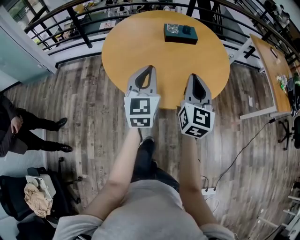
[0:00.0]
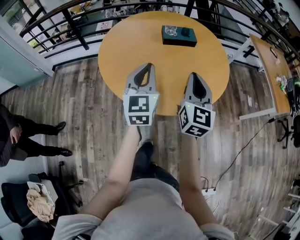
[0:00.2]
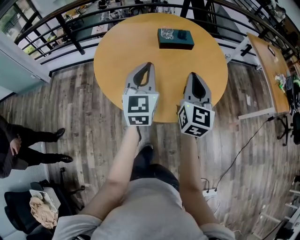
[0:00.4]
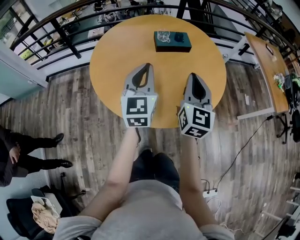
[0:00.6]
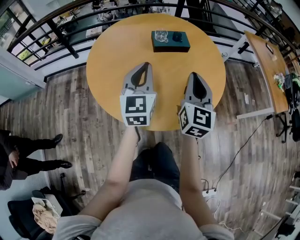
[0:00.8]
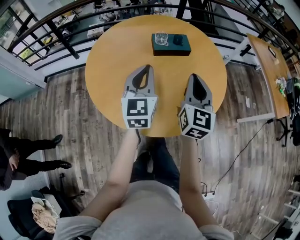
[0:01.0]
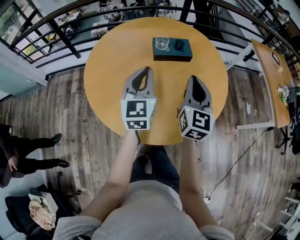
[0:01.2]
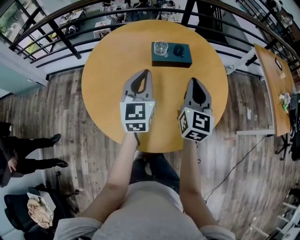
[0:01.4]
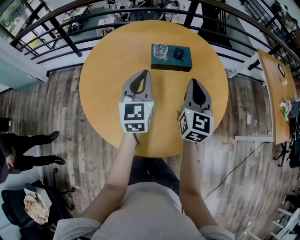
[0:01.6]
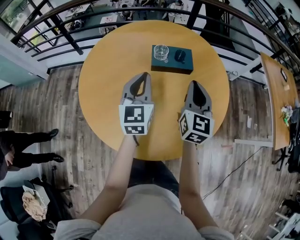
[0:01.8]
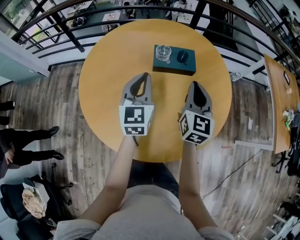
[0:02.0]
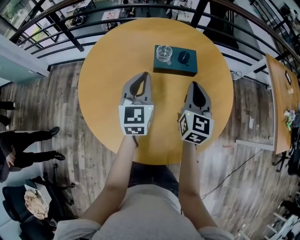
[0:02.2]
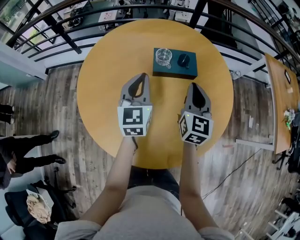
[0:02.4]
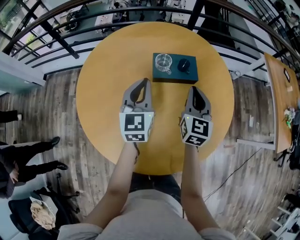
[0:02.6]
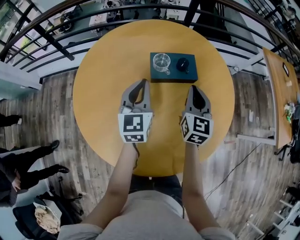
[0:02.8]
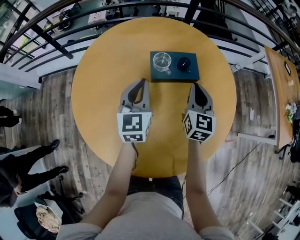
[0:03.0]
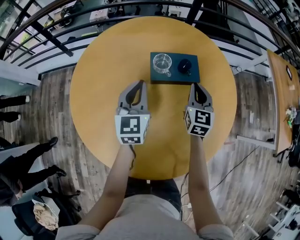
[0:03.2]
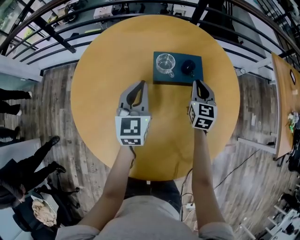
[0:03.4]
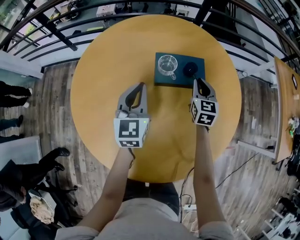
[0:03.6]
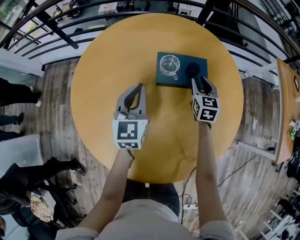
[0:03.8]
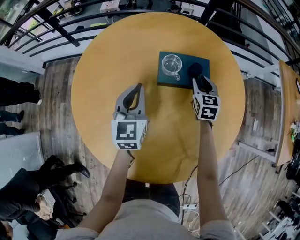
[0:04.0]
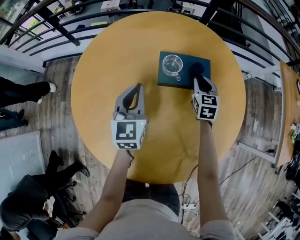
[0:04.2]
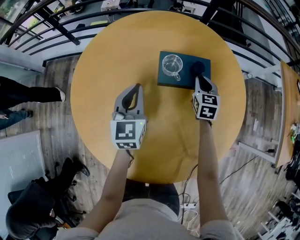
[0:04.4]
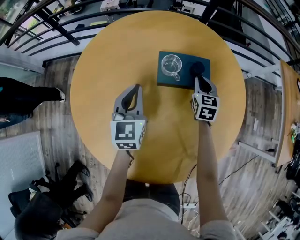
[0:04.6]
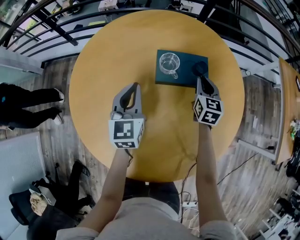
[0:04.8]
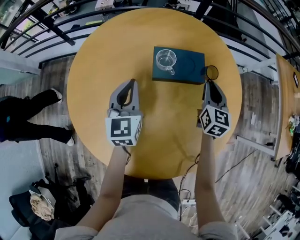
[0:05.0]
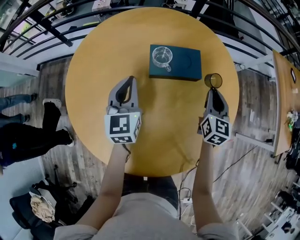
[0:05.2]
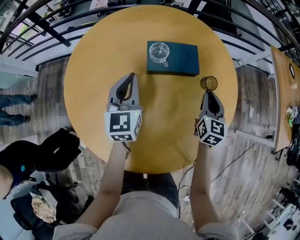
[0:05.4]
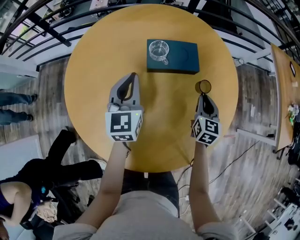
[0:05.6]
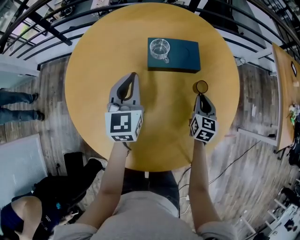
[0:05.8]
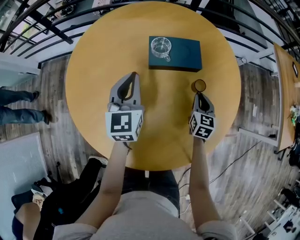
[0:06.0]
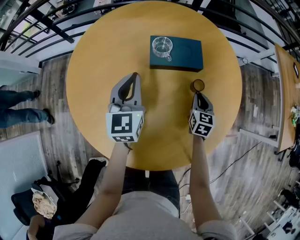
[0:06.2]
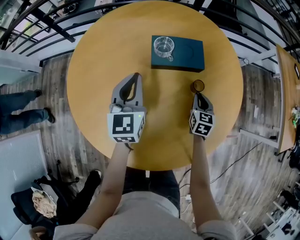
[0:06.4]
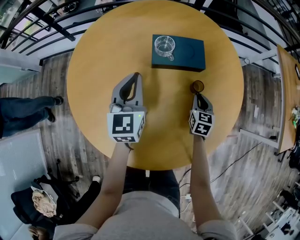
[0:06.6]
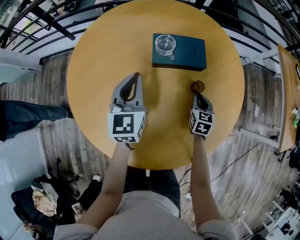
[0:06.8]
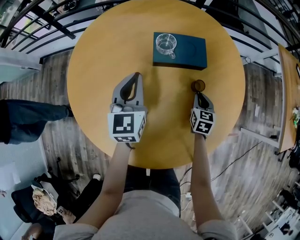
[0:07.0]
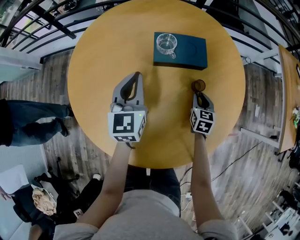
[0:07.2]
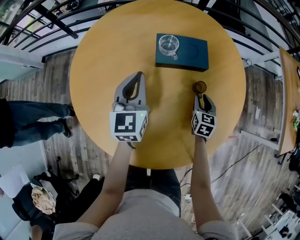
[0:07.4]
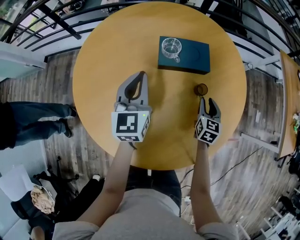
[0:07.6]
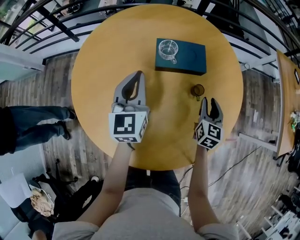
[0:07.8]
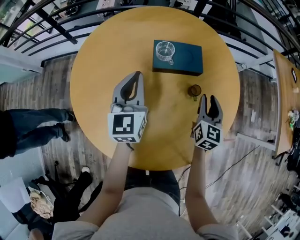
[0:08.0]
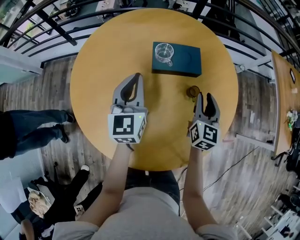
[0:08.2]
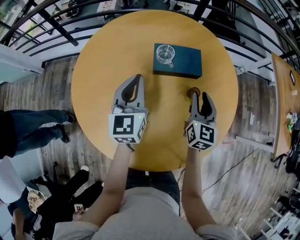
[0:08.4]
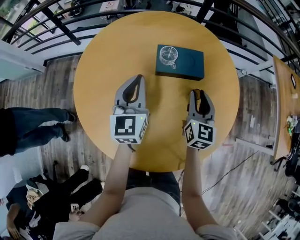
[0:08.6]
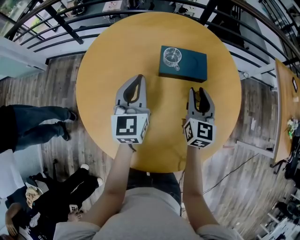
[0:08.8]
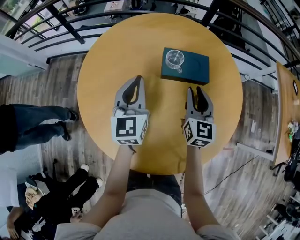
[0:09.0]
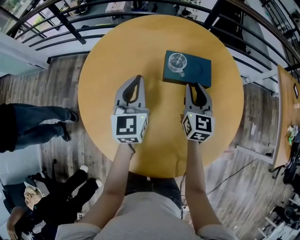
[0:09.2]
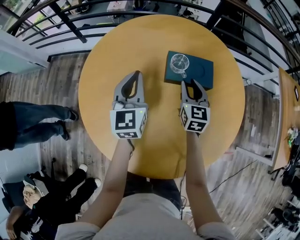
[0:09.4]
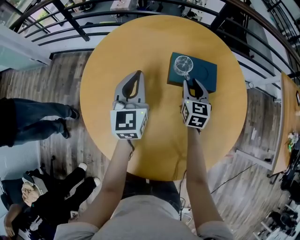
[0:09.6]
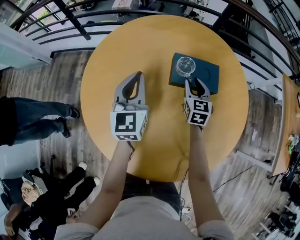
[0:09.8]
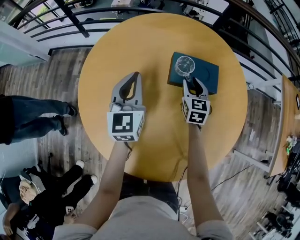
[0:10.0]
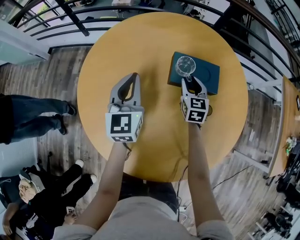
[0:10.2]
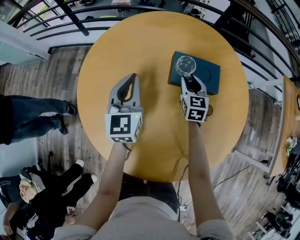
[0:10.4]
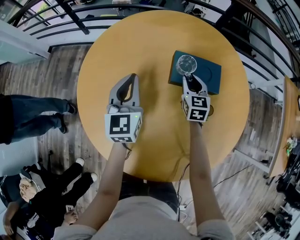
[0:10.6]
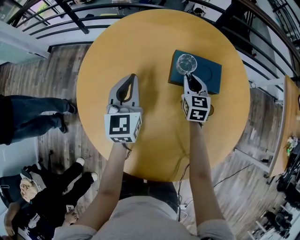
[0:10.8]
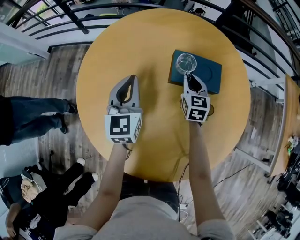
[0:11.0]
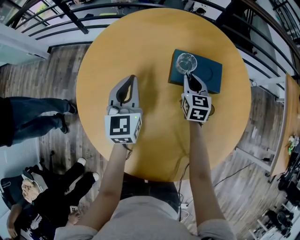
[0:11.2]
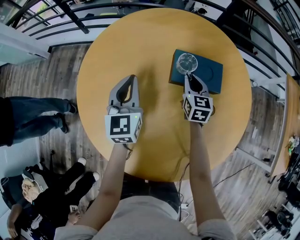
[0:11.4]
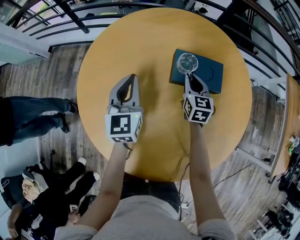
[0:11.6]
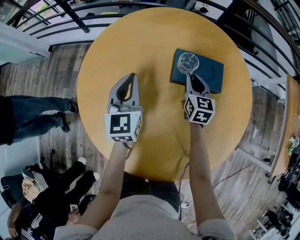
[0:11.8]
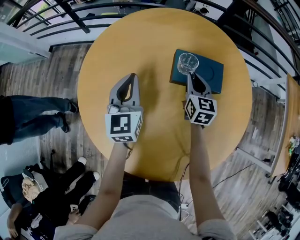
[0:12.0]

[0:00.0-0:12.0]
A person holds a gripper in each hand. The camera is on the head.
0:00.0 to 0:01.6: Both grippers move forward, roughly 30 cm.
0:01.6 to 0:03.0: Both grippers travel together forward and downward, approximately 15 cm.
0:03.0 to 0:04.4: The right gripper moves forward and downward, about 15 cm, turns by about 20 degrees, and opens, then closes once more, while the left gripper moves about 5 cm.
0:04.4 to 0:06.0: The right gripper moves backward and to the right, approximately 15 cm; the left gripper changes place by approximately 5 cm.
0:06.0 to 0:07.6: The grippers make only small movements.
0:07.6 to 0:09.0: The right gripper moves upward and to the left, approximately 20 cm, and turns by roughly 20 degrees.
0:09.0 to 0:10.4: The right gripper goes roughly 15 cm forward and downward. The left gripper moves about 5 cm.
0:10.4 to 0:12.0: There are only small adjustments of the grippers.

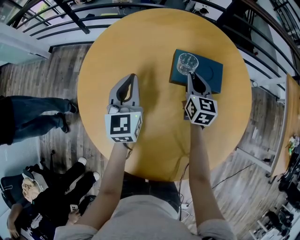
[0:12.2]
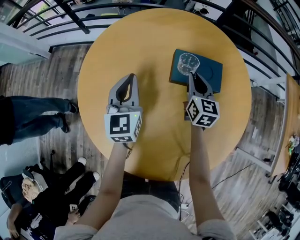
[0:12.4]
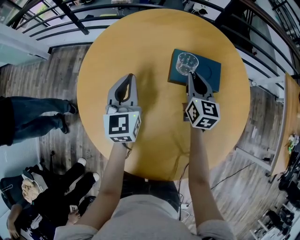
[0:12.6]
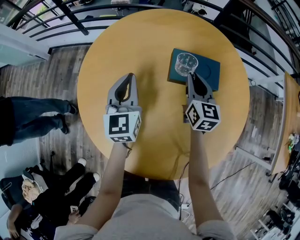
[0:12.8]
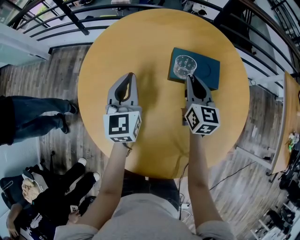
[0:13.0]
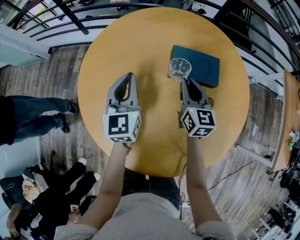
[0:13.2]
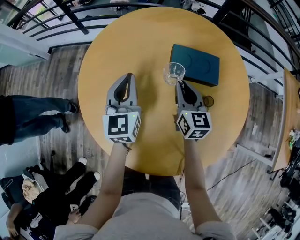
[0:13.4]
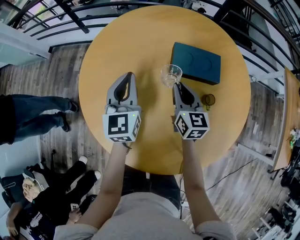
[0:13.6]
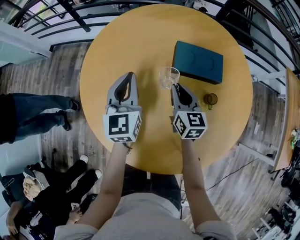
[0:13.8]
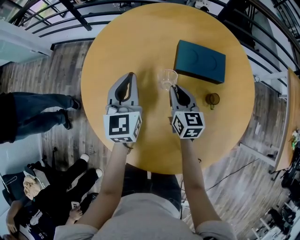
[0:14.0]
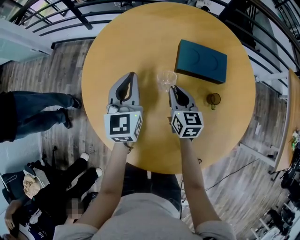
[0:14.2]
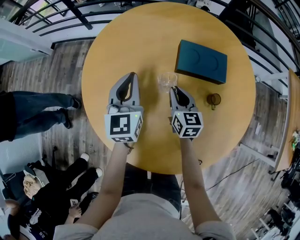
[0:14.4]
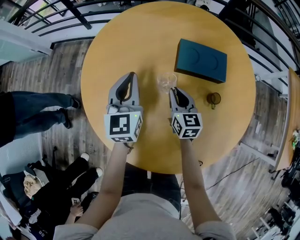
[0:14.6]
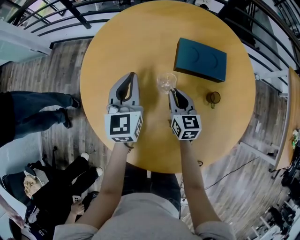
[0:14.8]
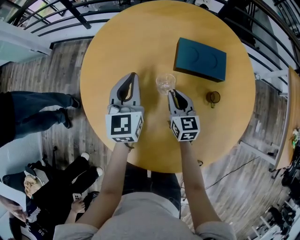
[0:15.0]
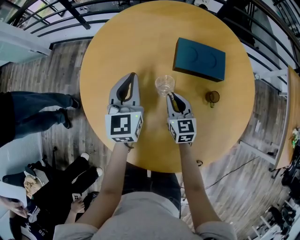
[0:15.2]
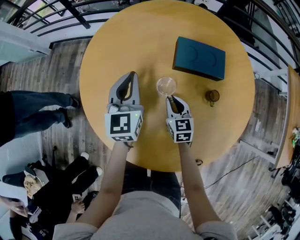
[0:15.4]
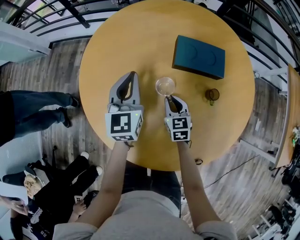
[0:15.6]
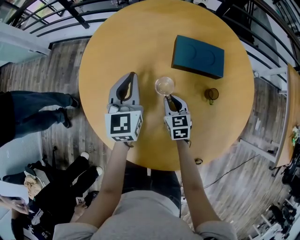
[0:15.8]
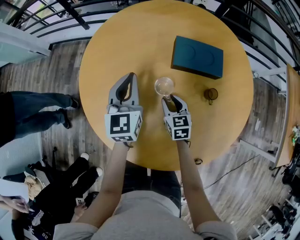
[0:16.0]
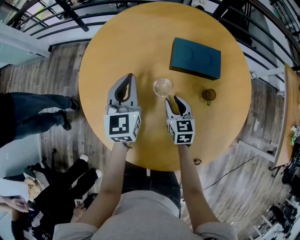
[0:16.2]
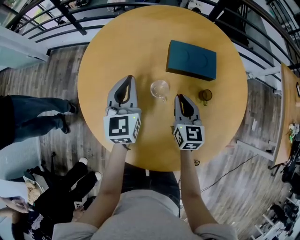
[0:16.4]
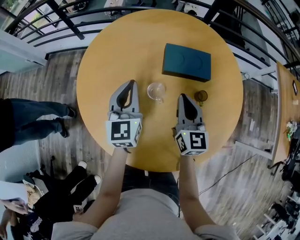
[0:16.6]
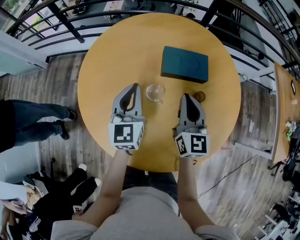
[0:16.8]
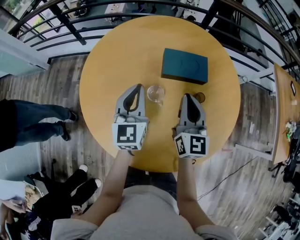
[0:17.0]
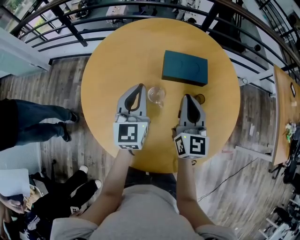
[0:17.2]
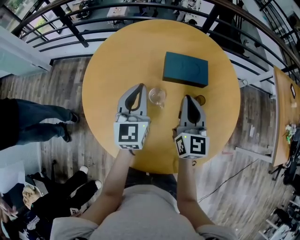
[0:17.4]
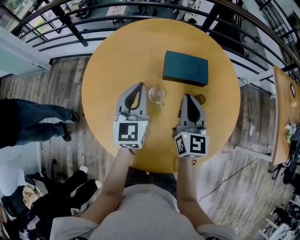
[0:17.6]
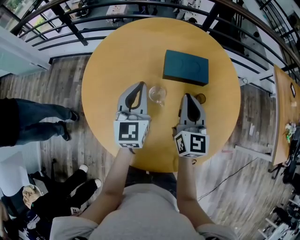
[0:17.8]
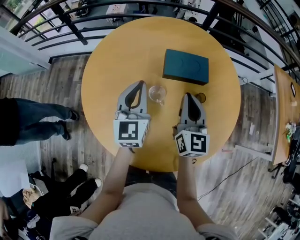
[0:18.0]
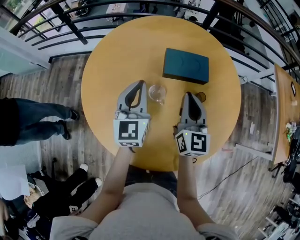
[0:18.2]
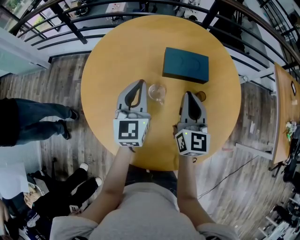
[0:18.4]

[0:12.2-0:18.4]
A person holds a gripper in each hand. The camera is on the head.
0:12.2 to 0:13.8: The right gripper goes some 10 cm backward and to the left.
0:13.8 to 0:15.4: The right gripper is displaced downward and backward by some 10 cm.
0:15.4 to 0:16.8: The left gripper changes place by about 5 cm. Meanwhile the right gripper travels upward by approximately 20 cm, and swivels some 30 degrees.
0:16.8 to 0:18.4: There are only small adjustments of the grippers.

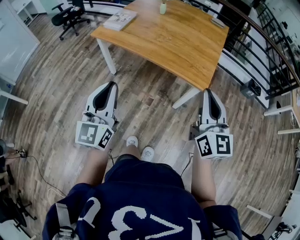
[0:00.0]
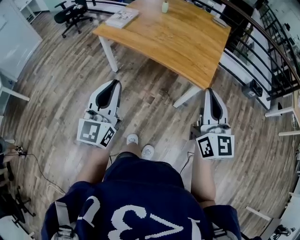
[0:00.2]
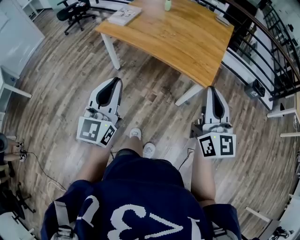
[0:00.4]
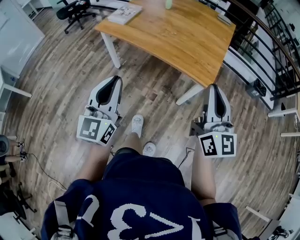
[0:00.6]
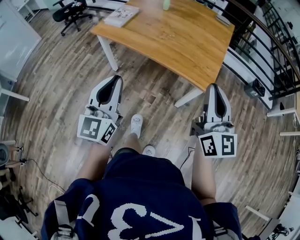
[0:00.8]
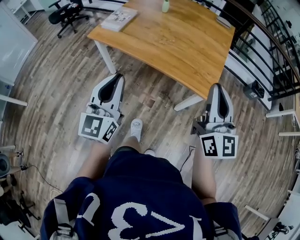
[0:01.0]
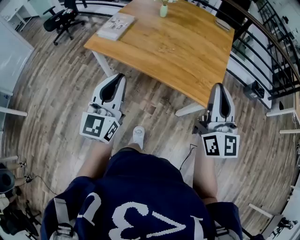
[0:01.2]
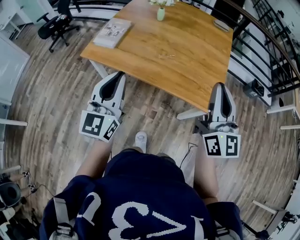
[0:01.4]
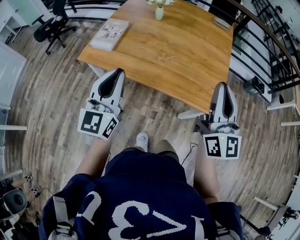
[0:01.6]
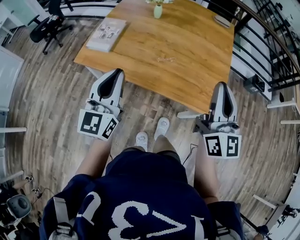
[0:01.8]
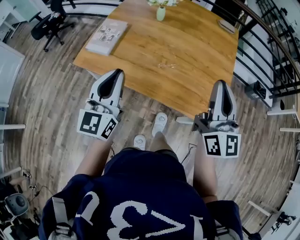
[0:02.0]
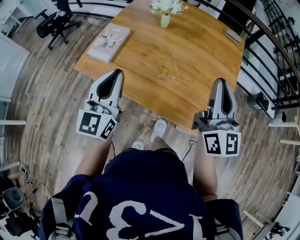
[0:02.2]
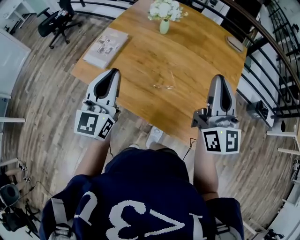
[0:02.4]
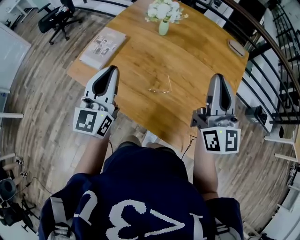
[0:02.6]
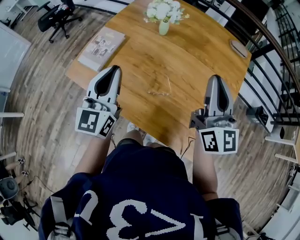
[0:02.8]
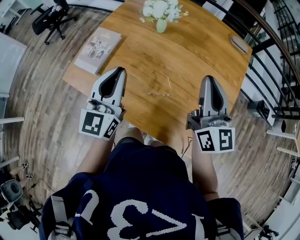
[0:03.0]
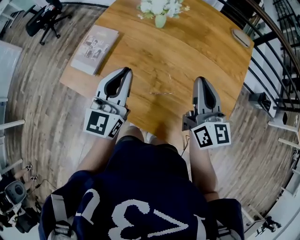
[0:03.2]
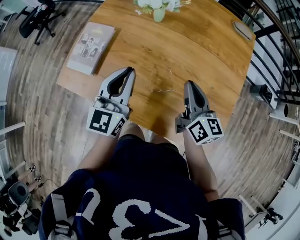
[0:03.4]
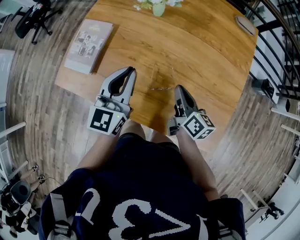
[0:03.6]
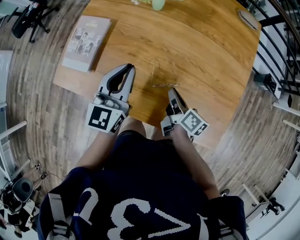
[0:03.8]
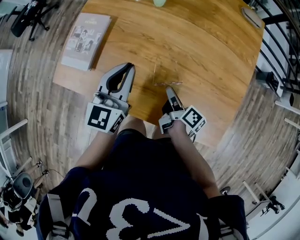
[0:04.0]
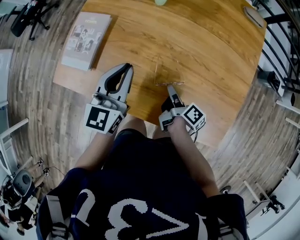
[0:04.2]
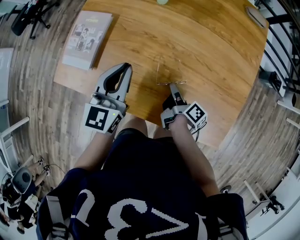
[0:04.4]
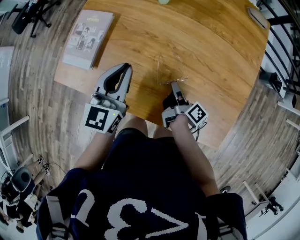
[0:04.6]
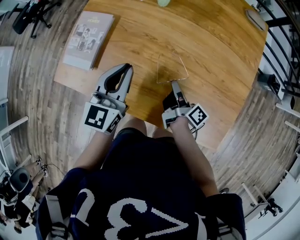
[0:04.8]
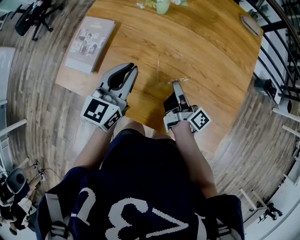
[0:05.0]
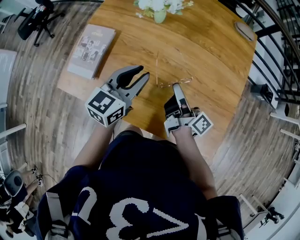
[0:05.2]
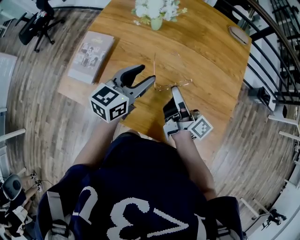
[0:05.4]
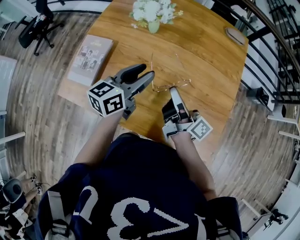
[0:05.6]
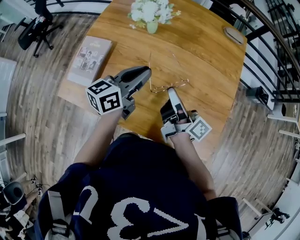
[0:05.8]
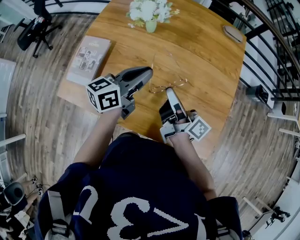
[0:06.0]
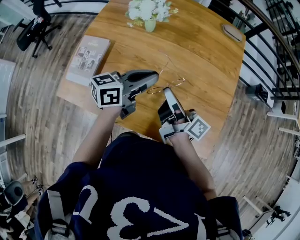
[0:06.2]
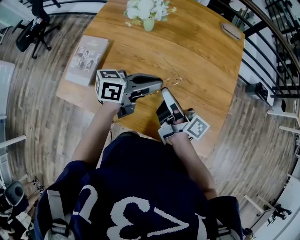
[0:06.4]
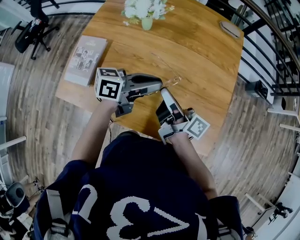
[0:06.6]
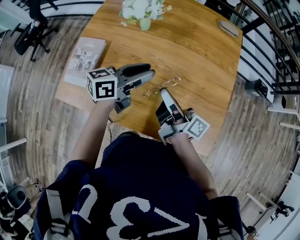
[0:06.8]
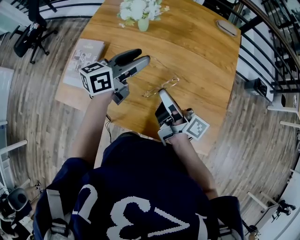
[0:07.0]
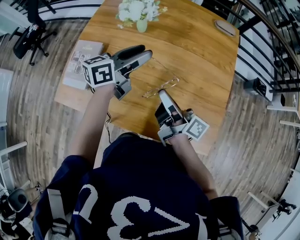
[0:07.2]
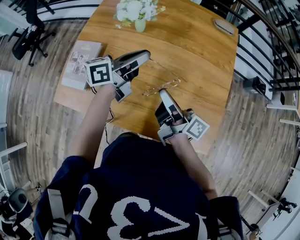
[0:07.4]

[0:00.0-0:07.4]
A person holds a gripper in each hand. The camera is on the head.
0:00.0 to 0:01.4: Both grippers travel together forward, some 20 cm.
0:01.4 to 0:03.0: The two grippers go roughly 30 cm forward.
0:03.0 to 0:04.4: The right gripper goes roughly 35 cm downward, and rolls clockwise, seen from behind, by roughly 80 degrees. The left gripper heads downward and forward, covering about 15 cm.
0:04.4 to 0:06.0: The right gripper moves upward, roughly 20 cm, and tips its fingers upward by some 30 degrees; the left gripper shifts about 10 cm to the right, rotates roughly 40 degrees, and opens and closes again.
0:06.0 to 0:07.4: The left gripper goes some 5 cm forward, and opens, then closes once more.
